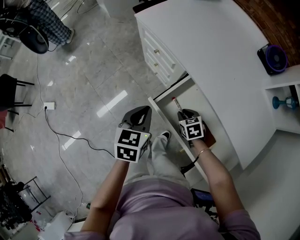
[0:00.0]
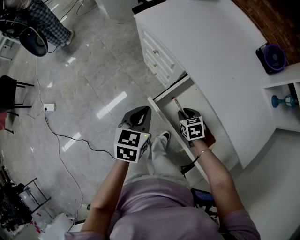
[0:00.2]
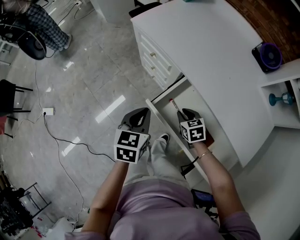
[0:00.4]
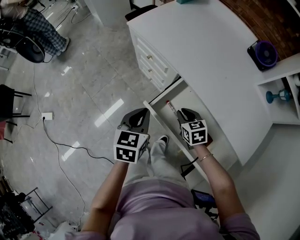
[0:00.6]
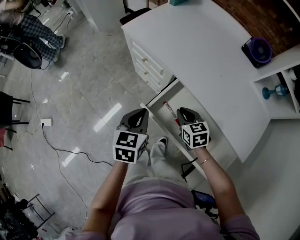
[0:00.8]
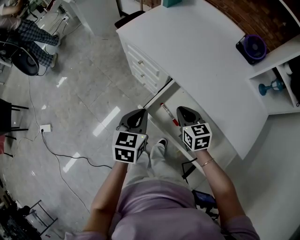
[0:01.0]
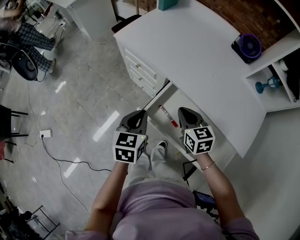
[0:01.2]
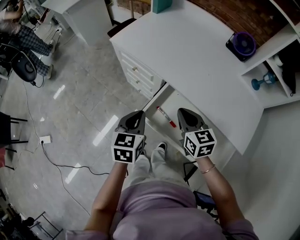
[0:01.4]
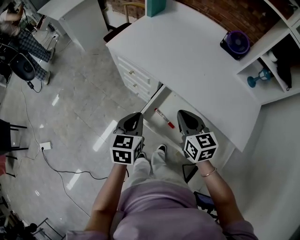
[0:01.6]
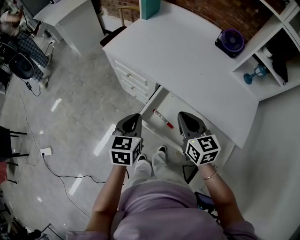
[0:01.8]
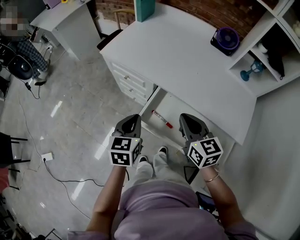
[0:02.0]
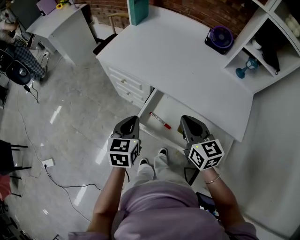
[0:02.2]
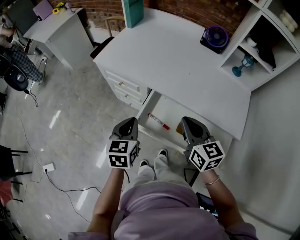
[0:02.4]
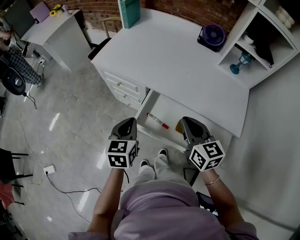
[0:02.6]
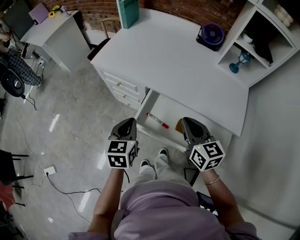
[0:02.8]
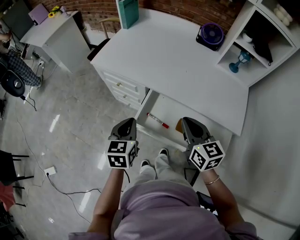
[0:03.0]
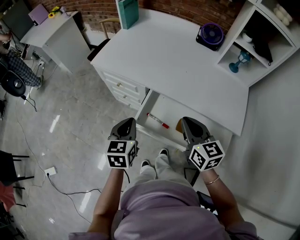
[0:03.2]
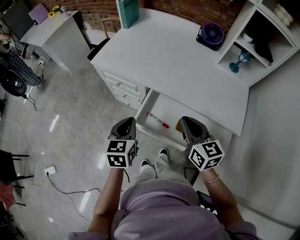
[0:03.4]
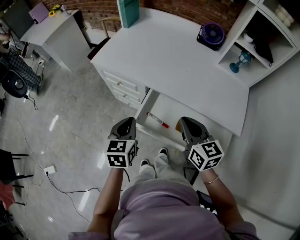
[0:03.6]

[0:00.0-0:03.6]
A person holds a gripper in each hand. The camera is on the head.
0:00.0 to 0:01.8: The left gripper shifts by some 5 cm. The right gripper moves upward, some 25 cm, and points its fingers about 40 degrees further upward.
0:01.8 to 0:03.6: The right gripper shifts by some 5 cm.

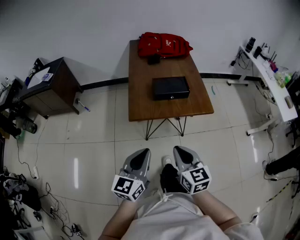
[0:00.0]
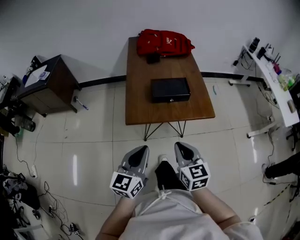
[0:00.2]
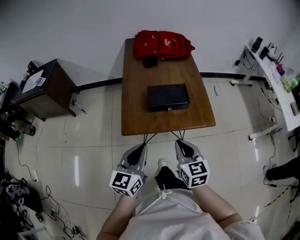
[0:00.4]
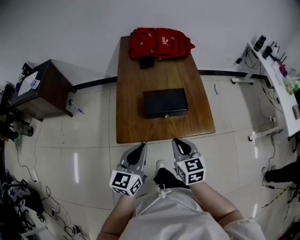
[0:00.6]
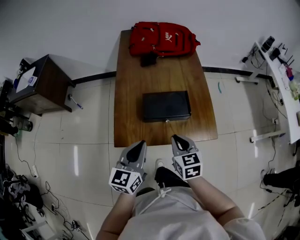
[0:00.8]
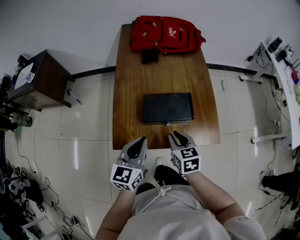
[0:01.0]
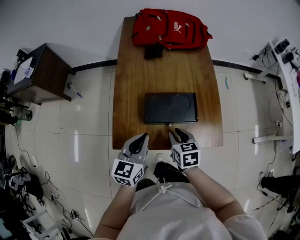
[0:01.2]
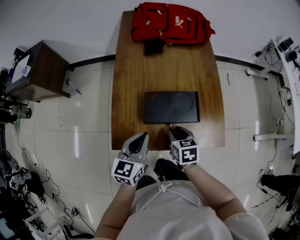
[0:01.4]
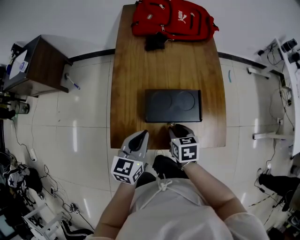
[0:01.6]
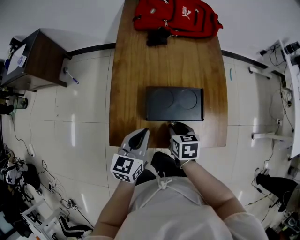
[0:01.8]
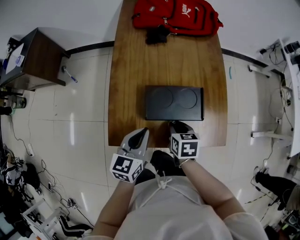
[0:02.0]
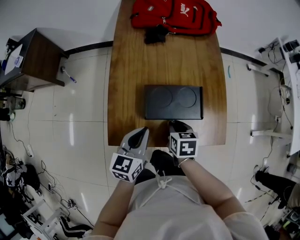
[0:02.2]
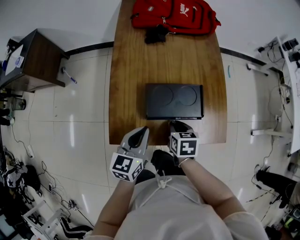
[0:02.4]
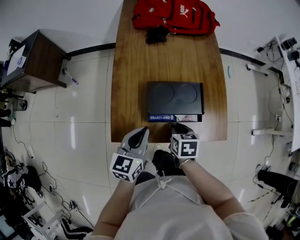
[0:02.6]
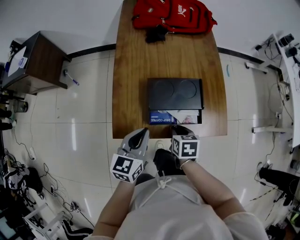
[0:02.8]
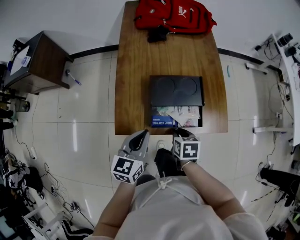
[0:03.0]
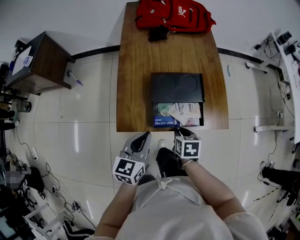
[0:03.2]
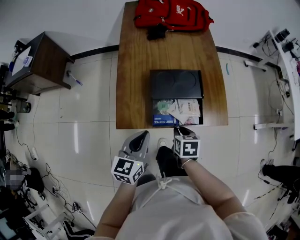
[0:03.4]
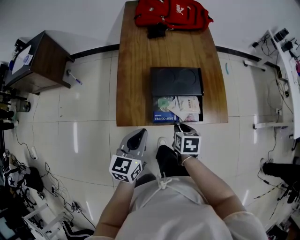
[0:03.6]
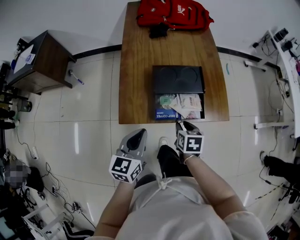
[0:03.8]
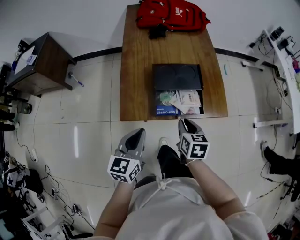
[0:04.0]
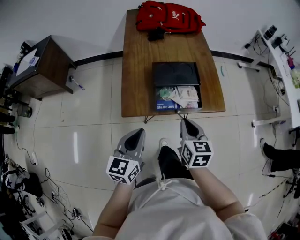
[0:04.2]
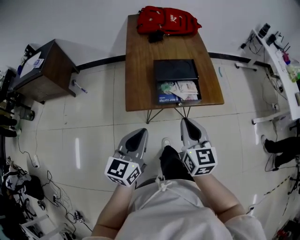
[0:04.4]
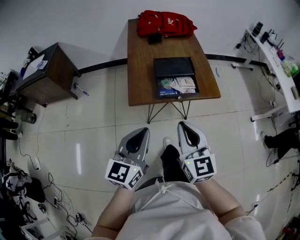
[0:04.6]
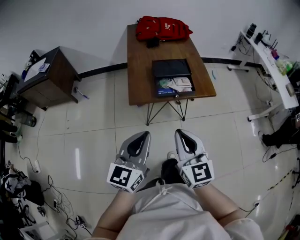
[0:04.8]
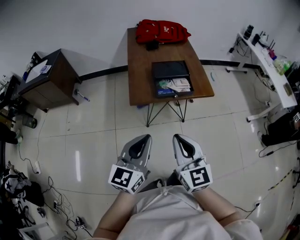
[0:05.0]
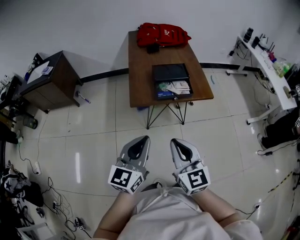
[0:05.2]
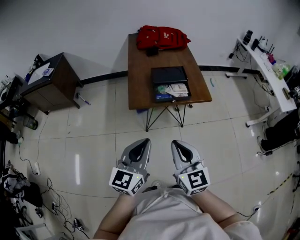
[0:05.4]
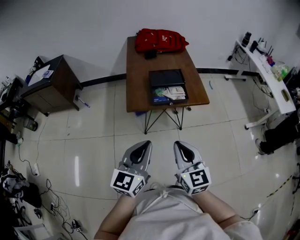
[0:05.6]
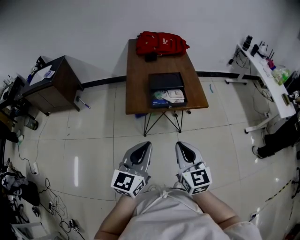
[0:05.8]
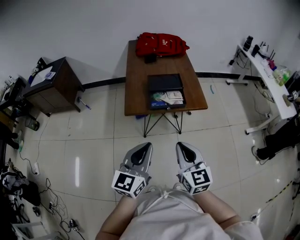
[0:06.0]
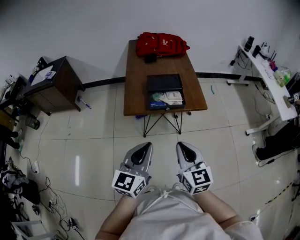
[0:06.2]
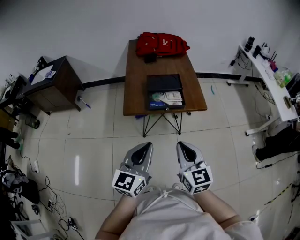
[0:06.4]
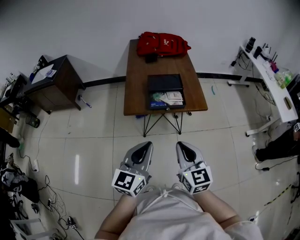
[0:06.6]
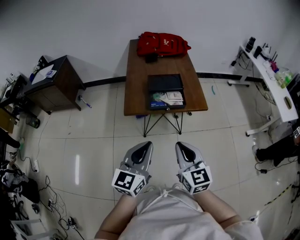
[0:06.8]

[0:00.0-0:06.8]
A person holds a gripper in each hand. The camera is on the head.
0:00.0 to 0:01.4: The left gripper moves forward, approximately 35 cm; the right gripper travels forward and downward by approximately 40 cm, changes its angle by approximately 30 degrees, and opens its fingers.
0:01.4 to 0:02.8: The right gripper ends up approximately 5 cm from where it was.
0:02.8 to 0:04.0: The left gripper shifts roughly 10 cm backward. The right gripper is displaced backward and upward by approximately 10 cm.
0:04.0 to 0:05.4: Both grippers travel together backward and upward, about 35 cm. The right gripper points its fingers roughly 30 degrees further upward.
0:05.4 to 0:06.8: The grippers both shift to the right by about 5 cm.

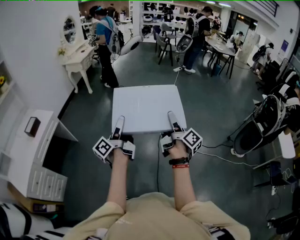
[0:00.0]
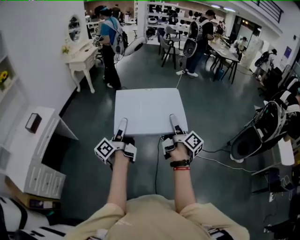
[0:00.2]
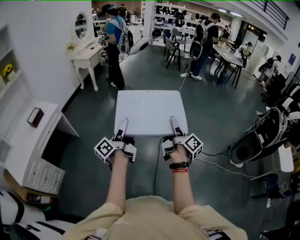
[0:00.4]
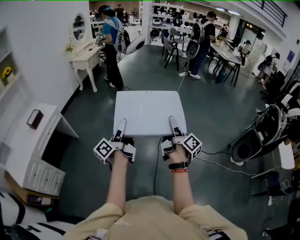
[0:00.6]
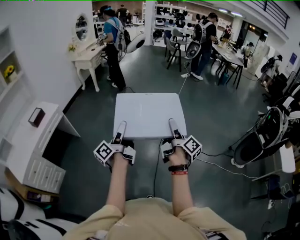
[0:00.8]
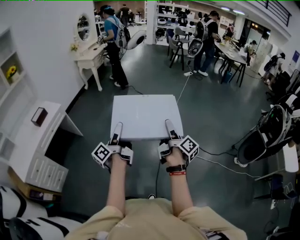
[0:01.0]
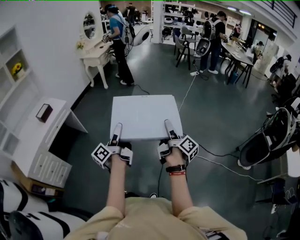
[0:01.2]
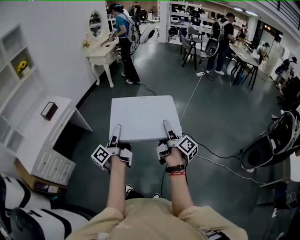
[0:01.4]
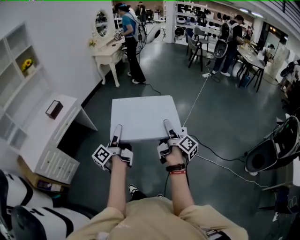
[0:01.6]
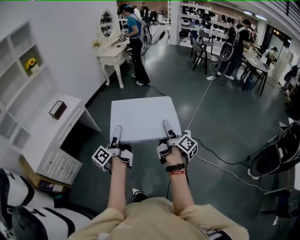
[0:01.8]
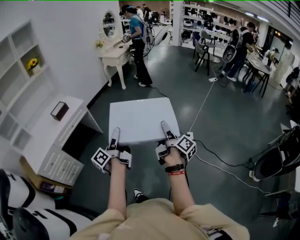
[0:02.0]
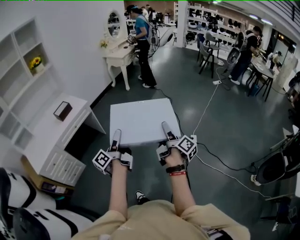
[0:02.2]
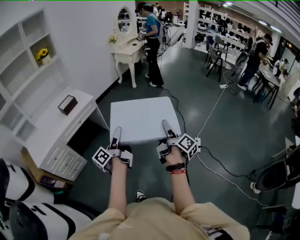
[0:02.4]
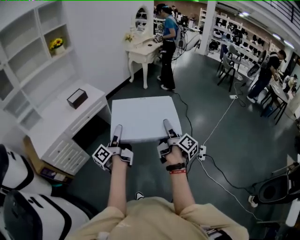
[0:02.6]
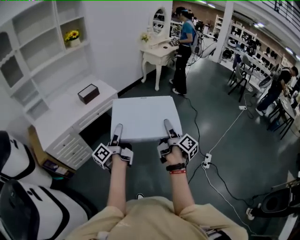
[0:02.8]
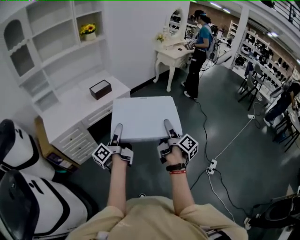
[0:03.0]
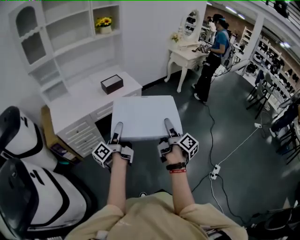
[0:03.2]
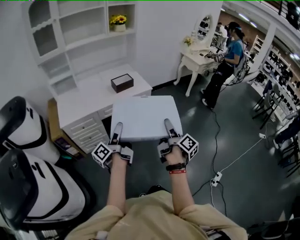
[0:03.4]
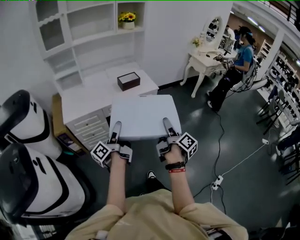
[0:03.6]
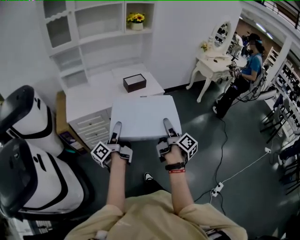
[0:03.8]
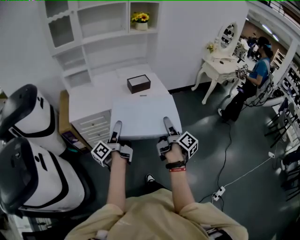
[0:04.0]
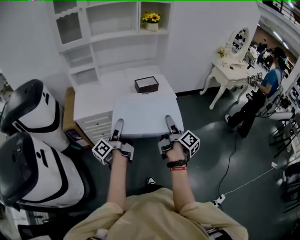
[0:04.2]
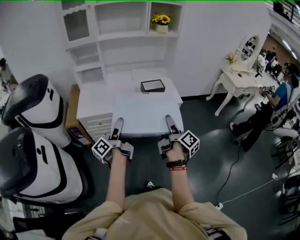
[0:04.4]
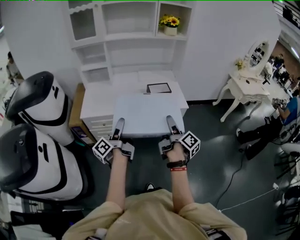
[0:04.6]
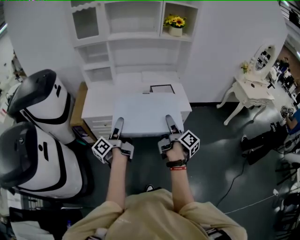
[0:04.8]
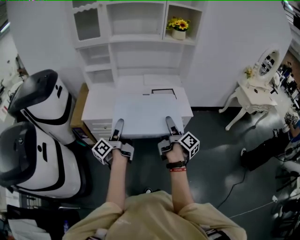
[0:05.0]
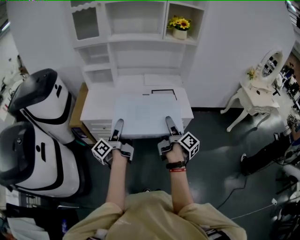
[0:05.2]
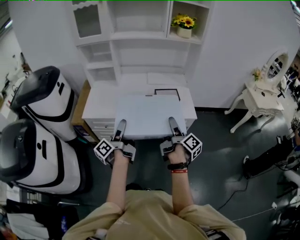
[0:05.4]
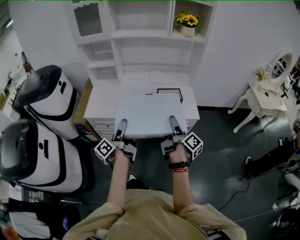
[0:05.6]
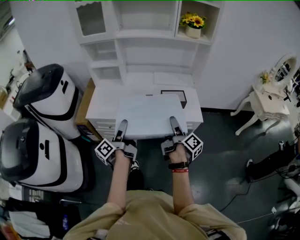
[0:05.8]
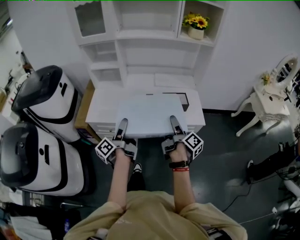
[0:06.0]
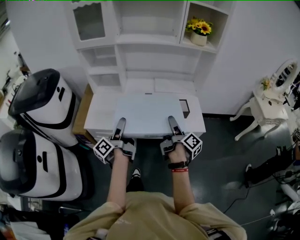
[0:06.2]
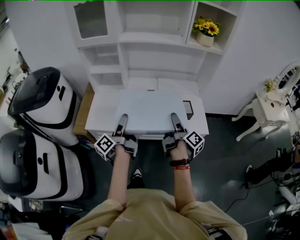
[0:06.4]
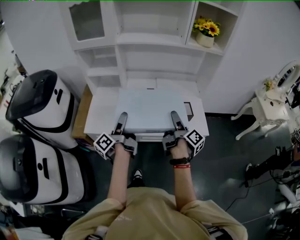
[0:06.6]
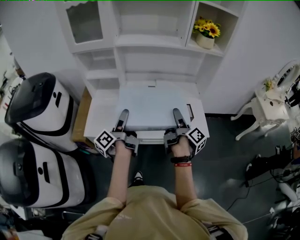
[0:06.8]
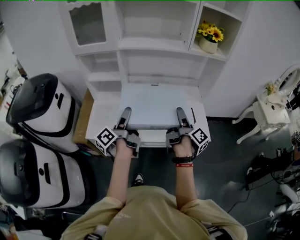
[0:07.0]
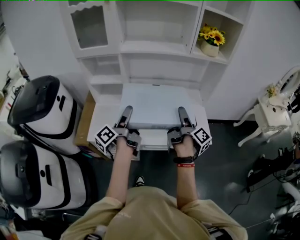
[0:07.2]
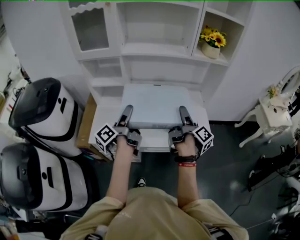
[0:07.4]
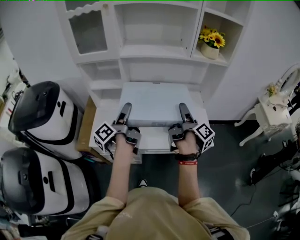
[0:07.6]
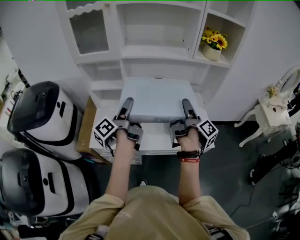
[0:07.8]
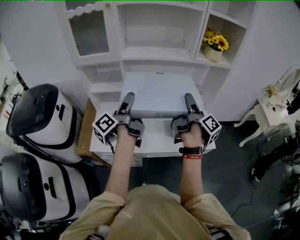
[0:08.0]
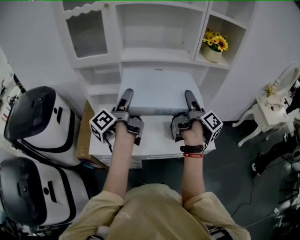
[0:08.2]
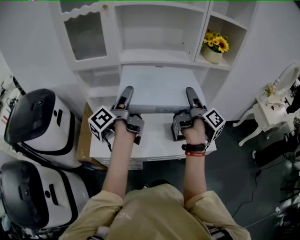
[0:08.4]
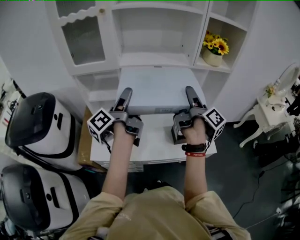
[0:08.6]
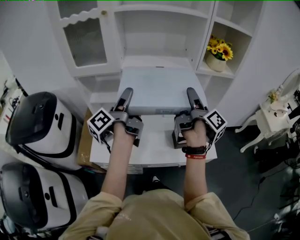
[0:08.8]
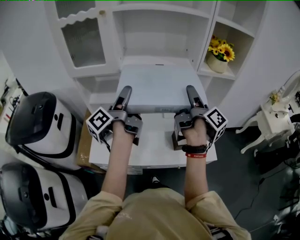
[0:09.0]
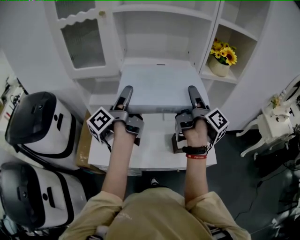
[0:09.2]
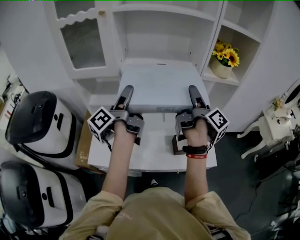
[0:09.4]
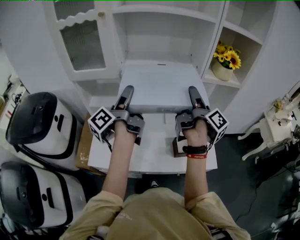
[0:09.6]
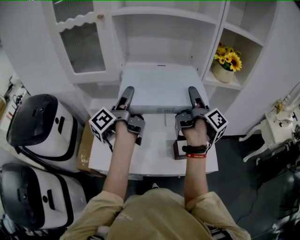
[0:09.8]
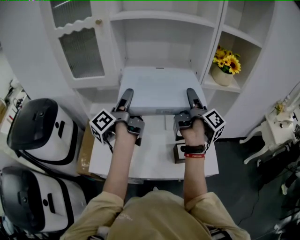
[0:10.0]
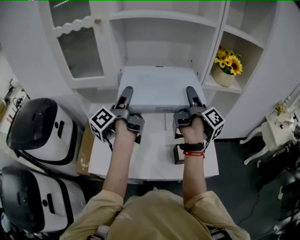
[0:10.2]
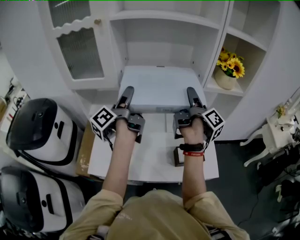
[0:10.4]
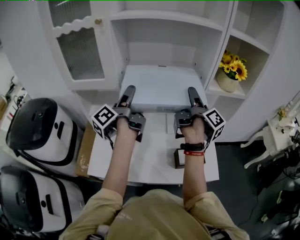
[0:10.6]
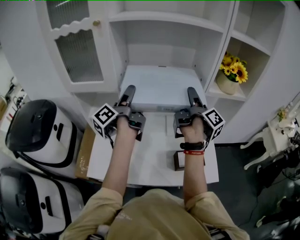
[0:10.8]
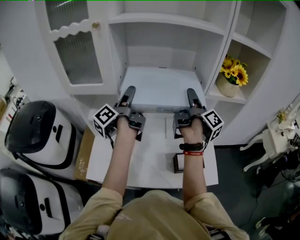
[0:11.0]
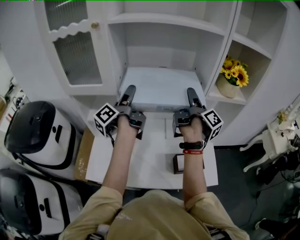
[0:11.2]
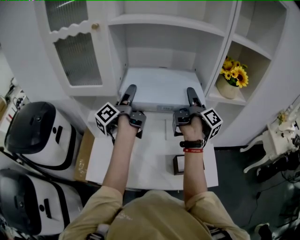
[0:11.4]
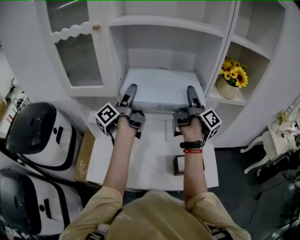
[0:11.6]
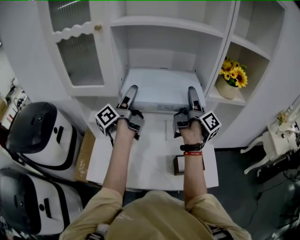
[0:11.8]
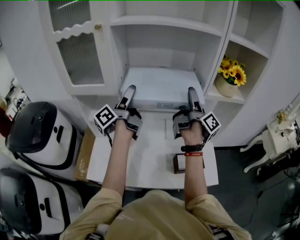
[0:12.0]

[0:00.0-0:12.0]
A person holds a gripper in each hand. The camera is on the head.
0:00.0 to 0:01.6: The right gripper heads to the left and downward, covering roughly 10 cm. The left gripper travels to the left and backward by about 10 cm.
0:01.6 to 0:03.0: The right gripper moves roughly 40 cm, and rotates roughly 30 degrees. Meanwhile the left gripper moves about 35 cm, and rotates approximately 30 degrees.
0:03.0 to 0:04.4: The left gripper changes place by some 25 cm, and turns by roughly 30 degrees; the right gripper changes place by about 35 cm, and turns by approximately 30 degrees.
0:04.4 to 0:06.0: Both grippers travel together forward, some 20 cm.
0:06.0 to 0:07.6: The grippers both shift forward and upward by about 25 cm.
0:07.6 to 0:09.0: The two grippers go about 15 cm forward and upward.
0:09.0 to 0:10.4: The grippers both shift forward by approximately 10 cm.
0:10.4 to 0:12.0: The left gripper travels forward by roughly 5 cm.

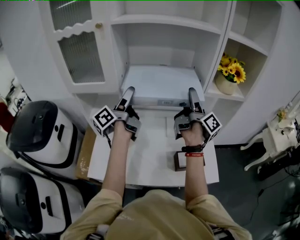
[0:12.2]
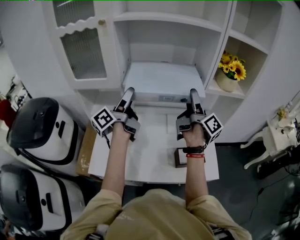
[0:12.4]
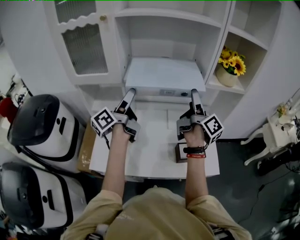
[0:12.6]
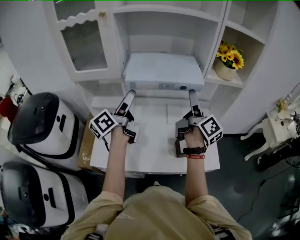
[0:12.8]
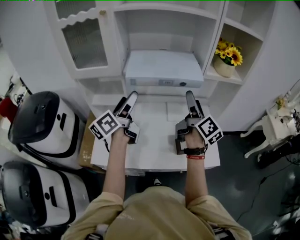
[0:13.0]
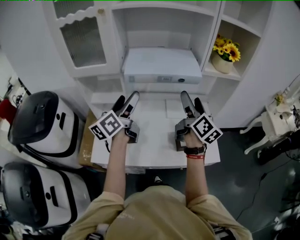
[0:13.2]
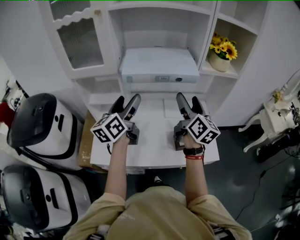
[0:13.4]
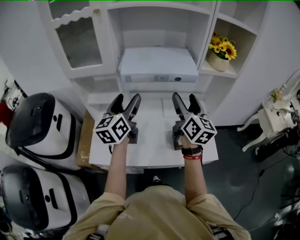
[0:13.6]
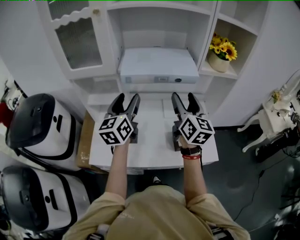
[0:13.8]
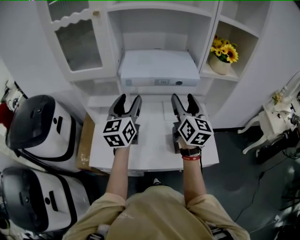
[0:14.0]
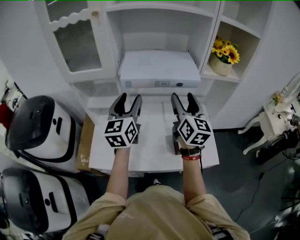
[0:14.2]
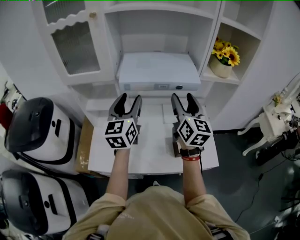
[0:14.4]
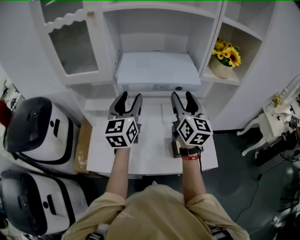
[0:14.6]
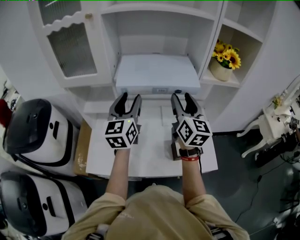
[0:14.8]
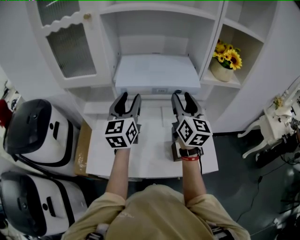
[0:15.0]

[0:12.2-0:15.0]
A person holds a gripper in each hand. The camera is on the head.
0:12.2 to 0:13.6: The grippers both shift backward by approximately 10 cm. The right gripper twists roughly 60 degrees counterclockwise, seen from behind, while the left gripper twists approximately 50 degrees clockwise, seen from behind.
0:13.6 to 0:15.0: The grippers both shift forward by about 5 cm.
